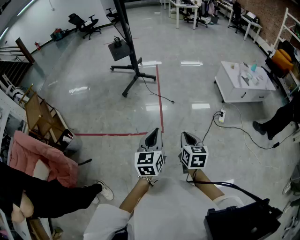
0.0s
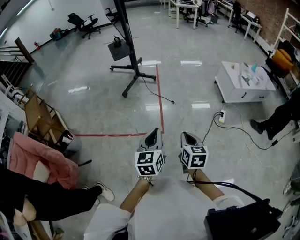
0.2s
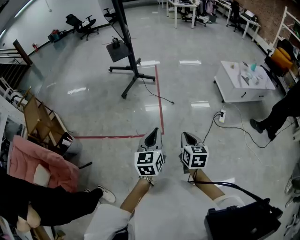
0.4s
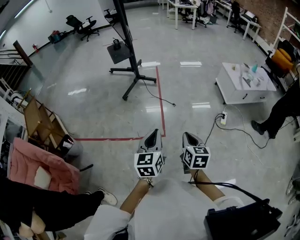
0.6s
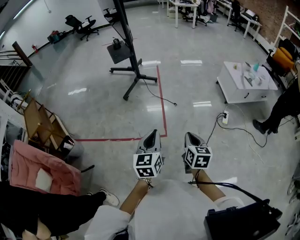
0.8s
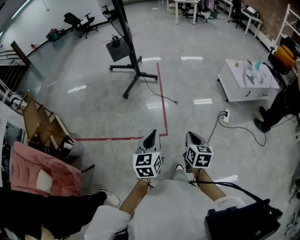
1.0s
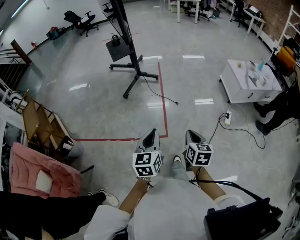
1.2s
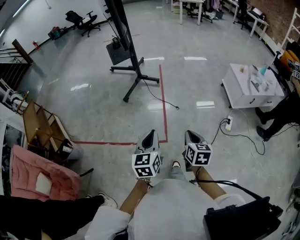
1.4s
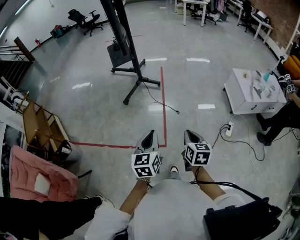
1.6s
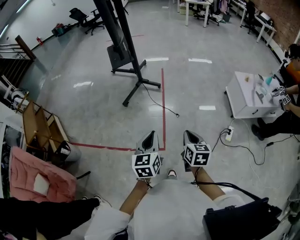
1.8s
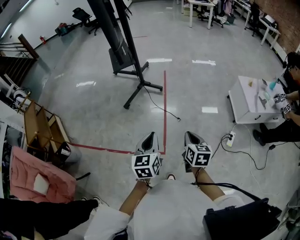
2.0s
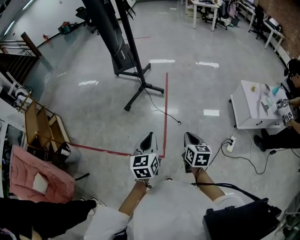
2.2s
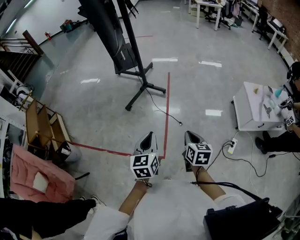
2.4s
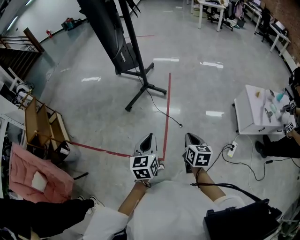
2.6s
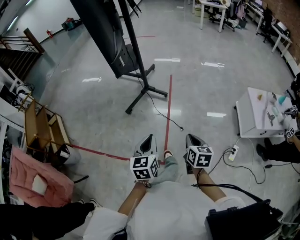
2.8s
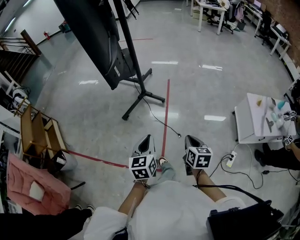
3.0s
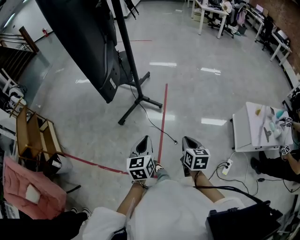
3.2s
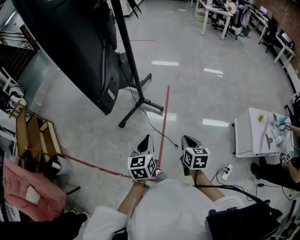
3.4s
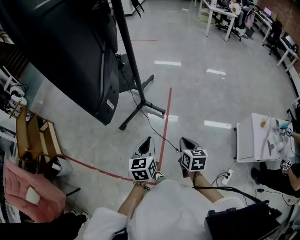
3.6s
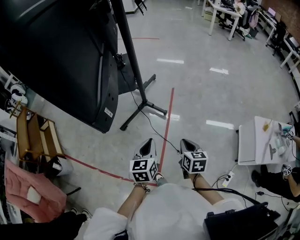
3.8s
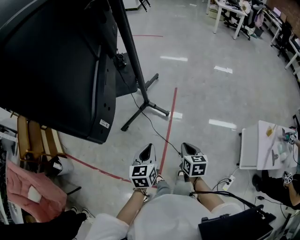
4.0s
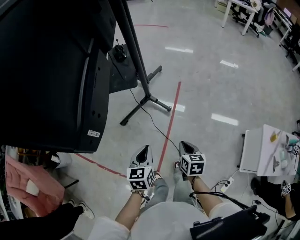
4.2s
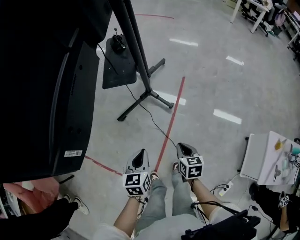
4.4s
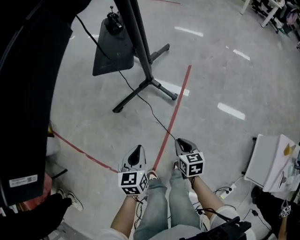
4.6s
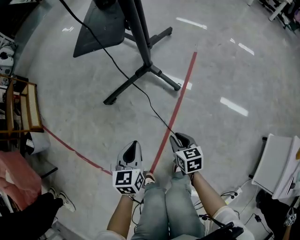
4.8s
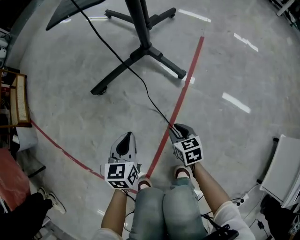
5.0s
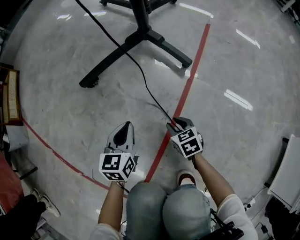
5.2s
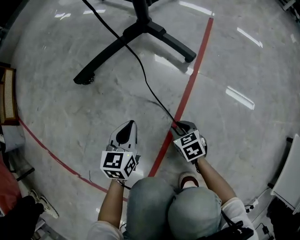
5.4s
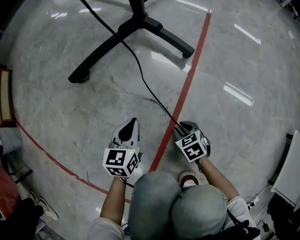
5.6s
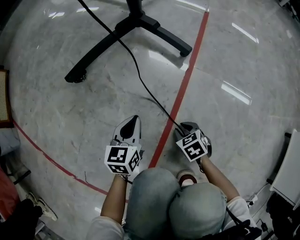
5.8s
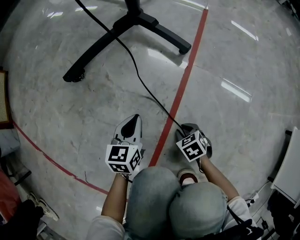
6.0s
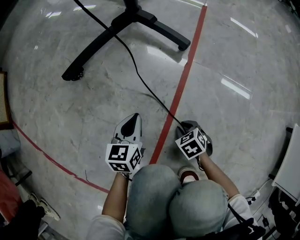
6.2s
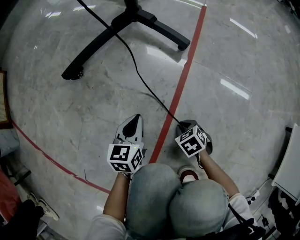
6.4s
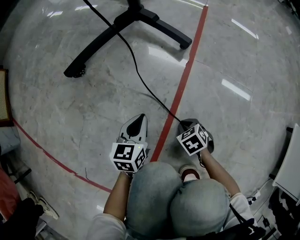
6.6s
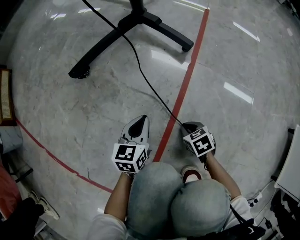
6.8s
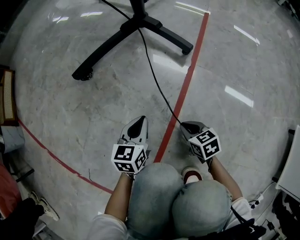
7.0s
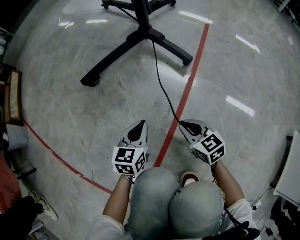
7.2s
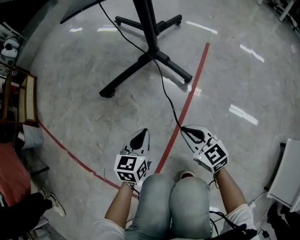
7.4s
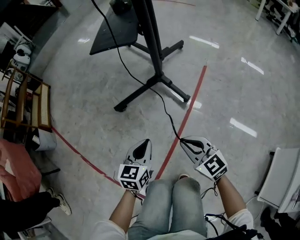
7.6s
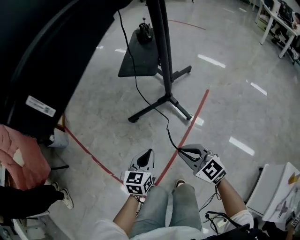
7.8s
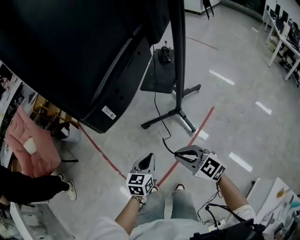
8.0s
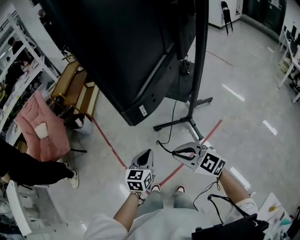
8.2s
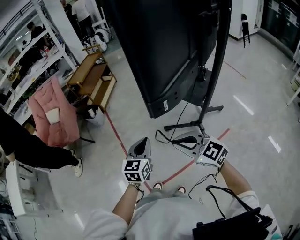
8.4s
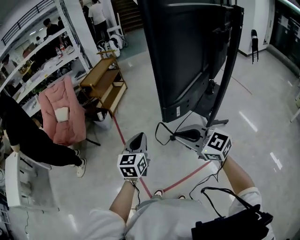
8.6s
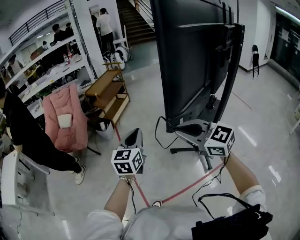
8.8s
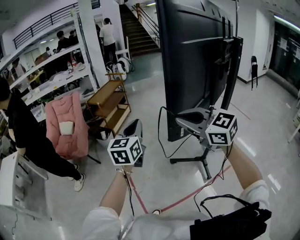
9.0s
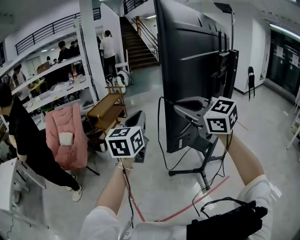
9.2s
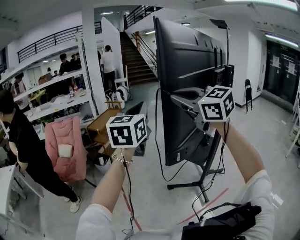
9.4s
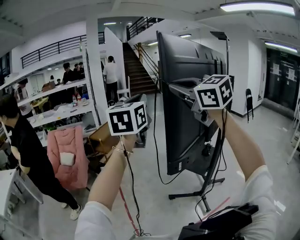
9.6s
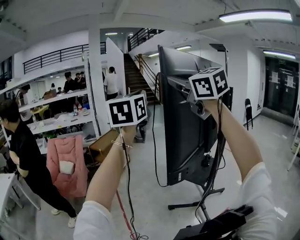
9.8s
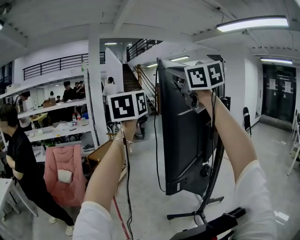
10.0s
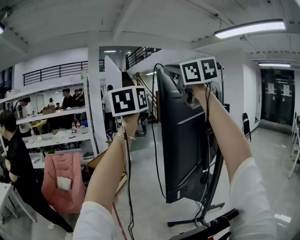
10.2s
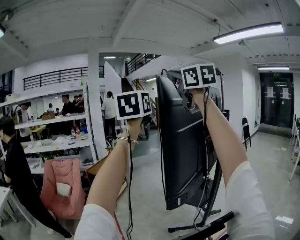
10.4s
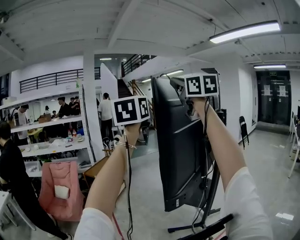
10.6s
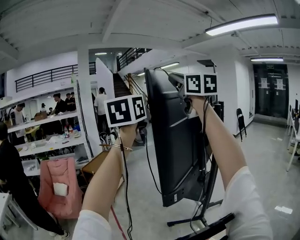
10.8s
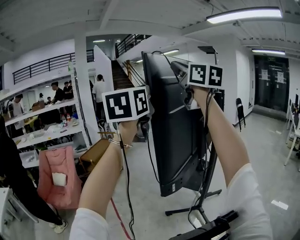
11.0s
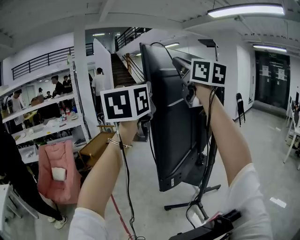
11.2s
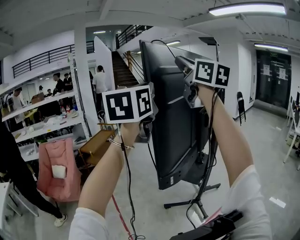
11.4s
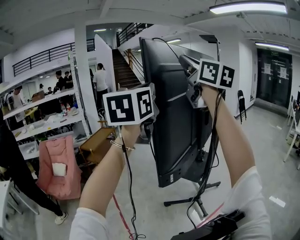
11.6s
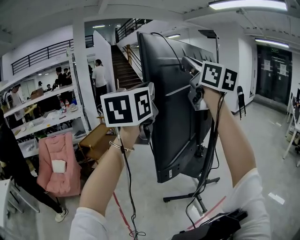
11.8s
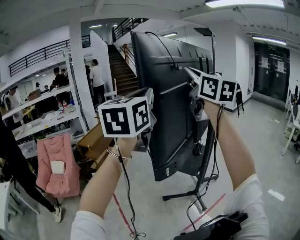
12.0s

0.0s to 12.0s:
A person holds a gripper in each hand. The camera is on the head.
0.0s to 1.6s: Both grippers move forward, about 25 cm.
1.6s to 3.0s: The grippers both shift forward by some 30 cm.
3.0s to 4.4s: Both grippers travel together forward and downward, roughly 35 cm. The right gripper swivels approximately 20 degrees.
4.4s to 6.0s: Both grippers move downward, some 70 cm. The right gripper swivels some 40 degrees, and opens its fingers.
6.0s to 7.6s: The two grippers go about 40 cm upward. The right gripper tilts its fingers roughly 50 degrees upward, and closes up.
7.6s to 9.0s: The two grippers go approximately 70 cm upward. The left gripper turns by about 50 degrees; the right gripper rotates approximately 50 degrees.
9.0s to 10.4s: The grippers both shift upward by about 50 cm. The right gripper rotates roughly 40 degrees. Meanwhile the left gripper swivels some 20 degrees.
10.4s to 12.0s: The two grippers go roughly 20 cm downward and to the right.

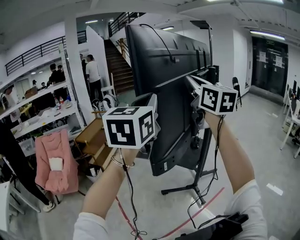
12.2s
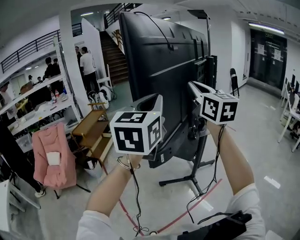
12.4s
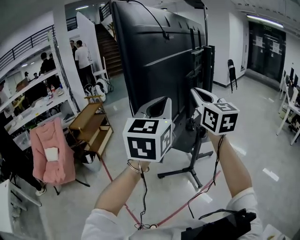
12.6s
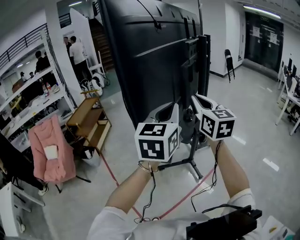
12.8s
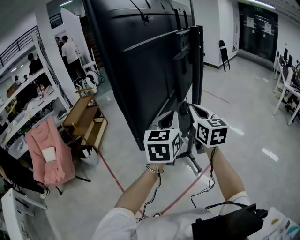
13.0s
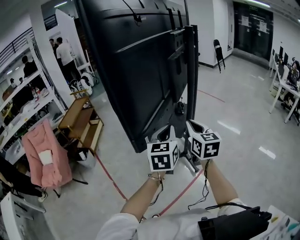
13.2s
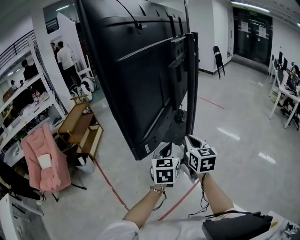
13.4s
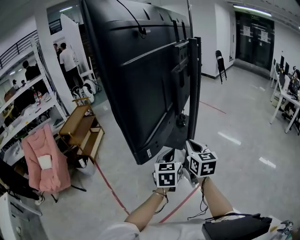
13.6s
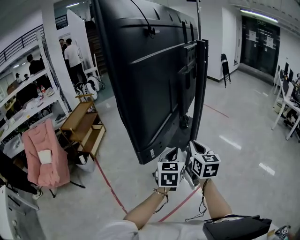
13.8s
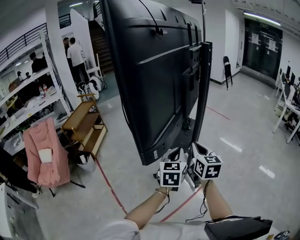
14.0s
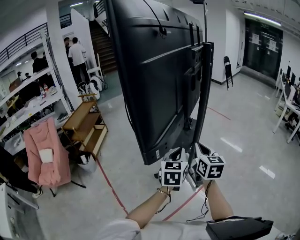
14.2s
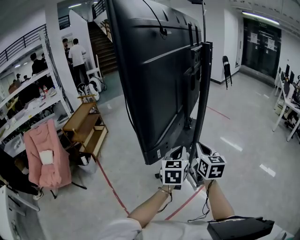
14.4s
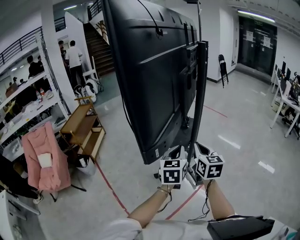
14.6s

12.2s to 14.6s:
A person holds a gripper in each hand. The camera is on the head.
12.2s to 13.4s: Both grippers move downward, about 35 cm. The left gripper rotates roughly 20 degrees; the right gripper turns by approximately 30 degrees.
13.4s to 14.6s: The grippers move only a little.

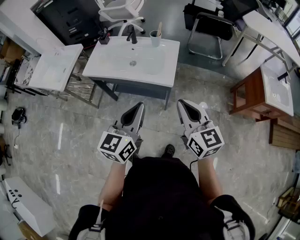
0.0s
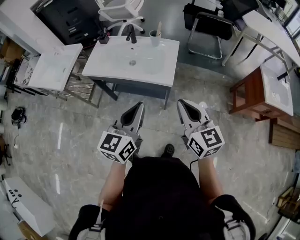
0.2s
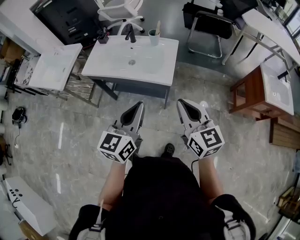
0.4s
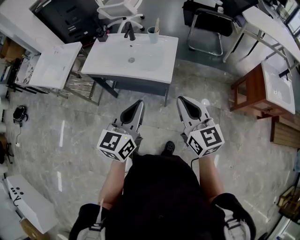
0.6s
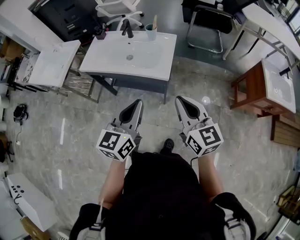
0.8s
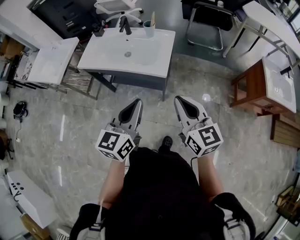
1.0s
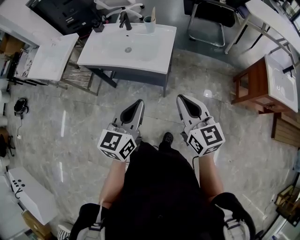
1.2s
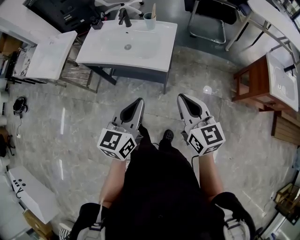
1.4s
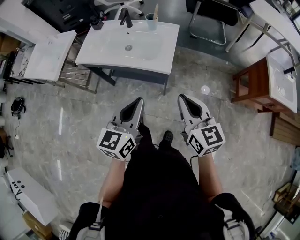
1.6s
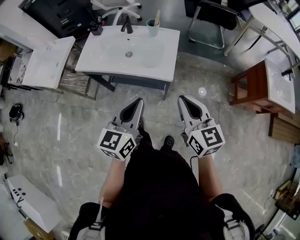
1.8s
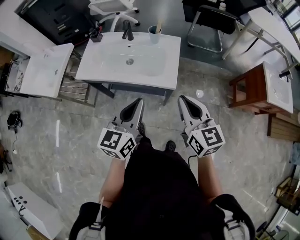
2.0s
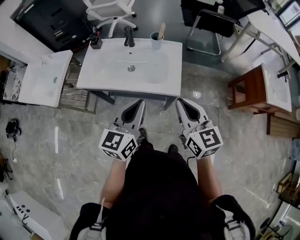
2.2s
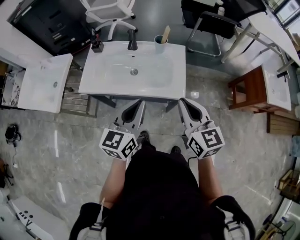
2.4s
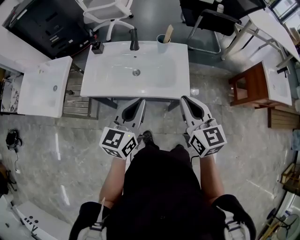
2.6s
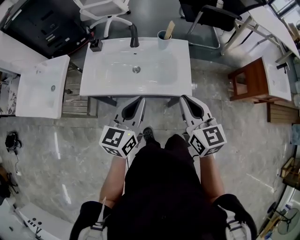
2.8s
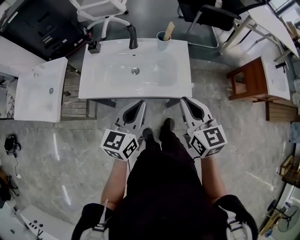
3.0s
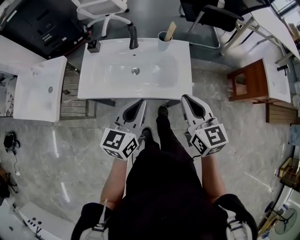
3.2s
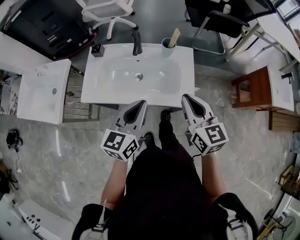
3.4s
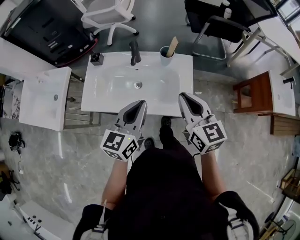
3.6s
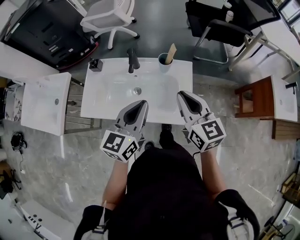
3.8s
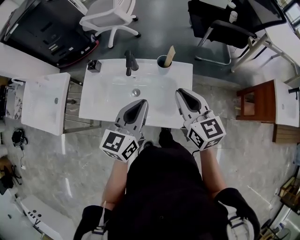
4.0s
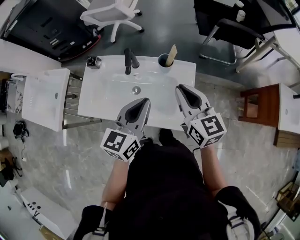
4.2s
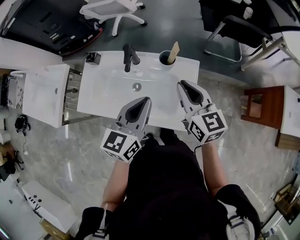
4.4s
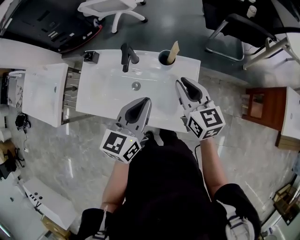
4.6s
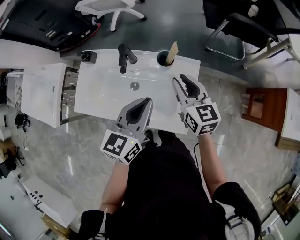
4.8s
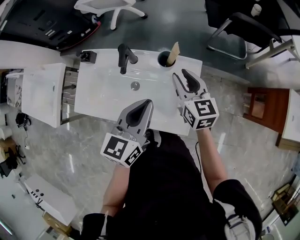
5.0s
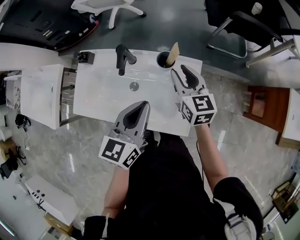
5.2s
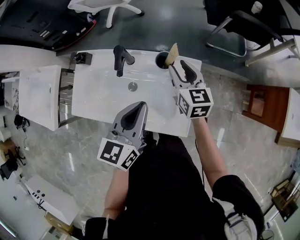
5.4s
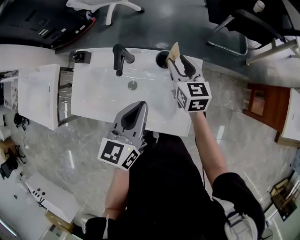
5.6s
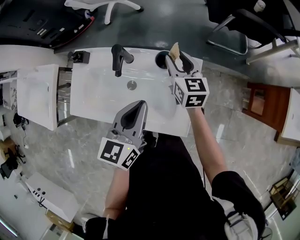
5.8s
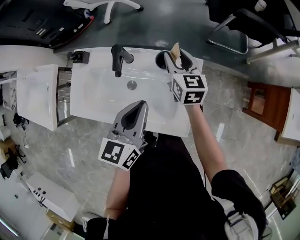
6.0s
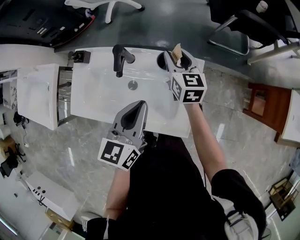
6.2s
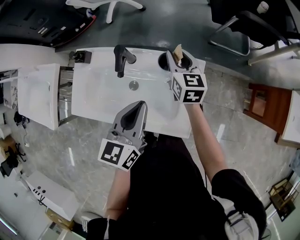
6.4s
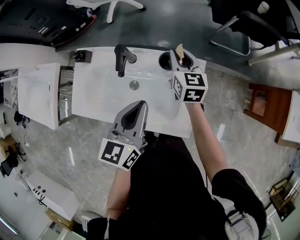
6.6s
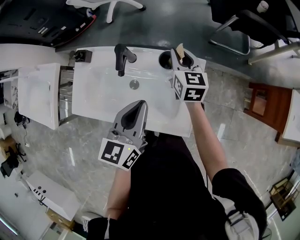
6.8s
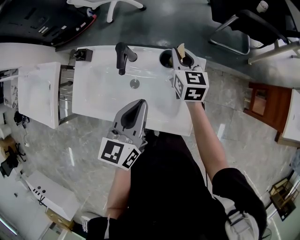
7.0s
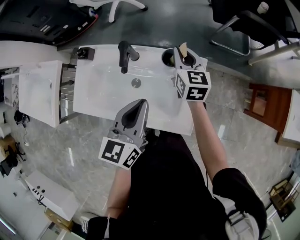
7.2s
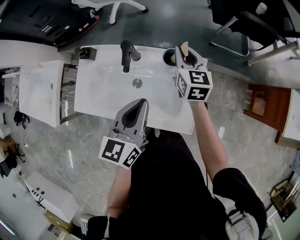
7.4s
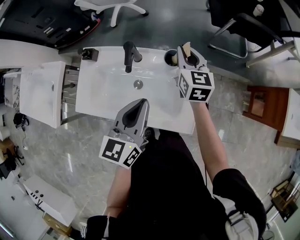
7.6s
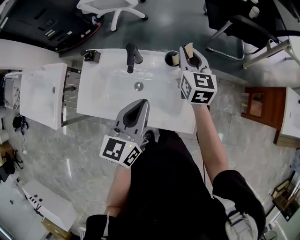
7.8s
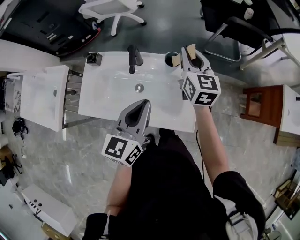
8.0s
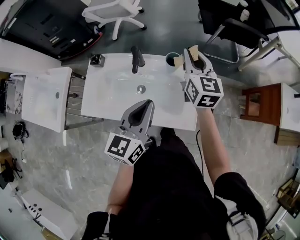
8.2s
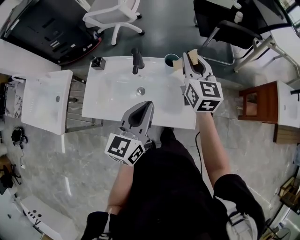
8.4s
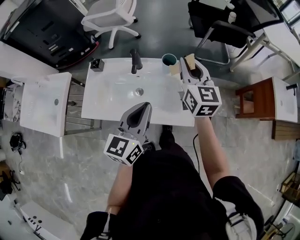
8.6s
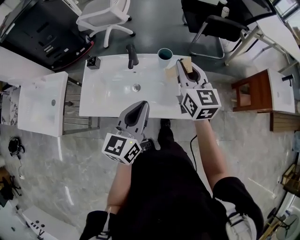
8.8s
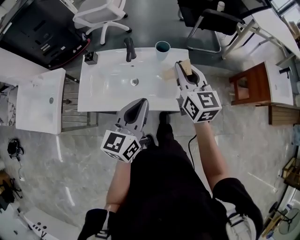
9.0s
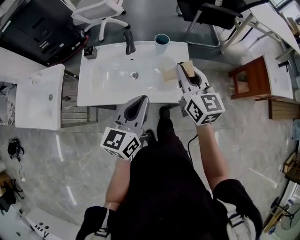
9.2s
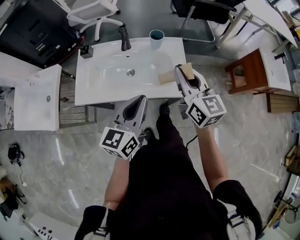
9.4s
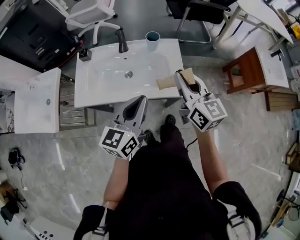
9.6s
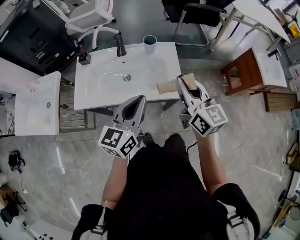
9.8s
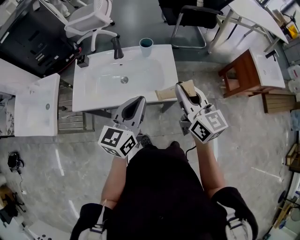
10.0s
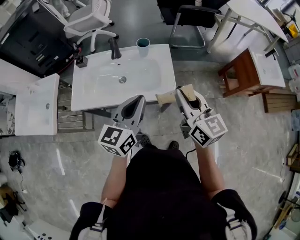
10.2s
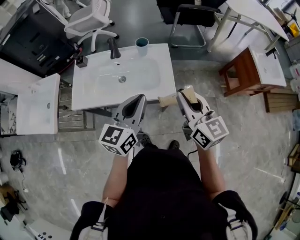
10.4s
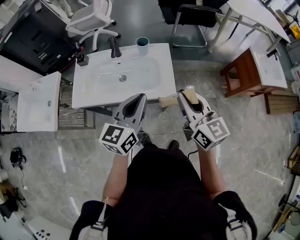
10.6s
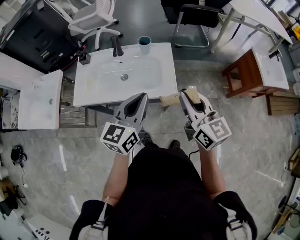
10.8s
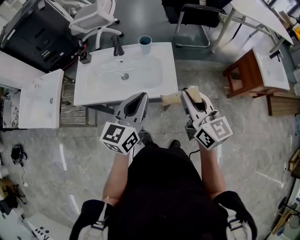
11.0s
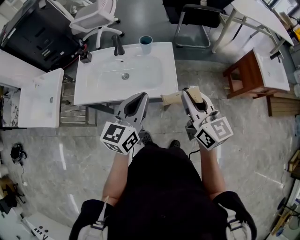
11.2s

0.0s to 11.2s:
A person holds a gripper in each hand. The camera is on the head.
1.6s to 3.2s: The right gripper is displaced to the left and forward by some 25 cm. Meanwhile the left gripper travels forward and to the left by about 25 cm.
3.2s to 4.8s: The right gripper travels forward by about 25 cm. Meanwhile the left gripper travels forward and to the right by some 20 cm.
4.8s to 6.4s: The right gripper goes approximately 15 cm forward and downward.
6.4s to 8.0s: The right gripper shifts some 10 cm upward, while the left gripper travels backward by about 5 cm.
8.0s to 9.6s: The right gripper moves backward, approximately 30 cm; the left gripper shifts roughly 15 cm backward.
9.6s to 11.2s: The right gripper travels to the right and backward by approximately 10 cm. Meanwhile the left gripper travels to the right by some 5 cm.
